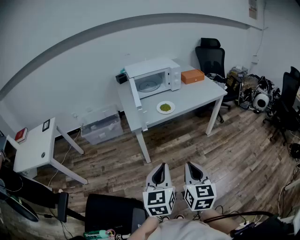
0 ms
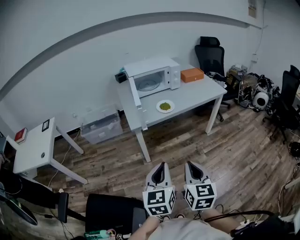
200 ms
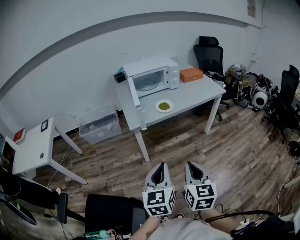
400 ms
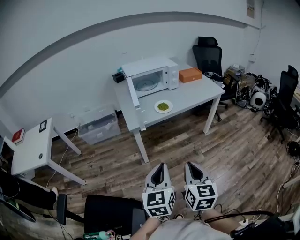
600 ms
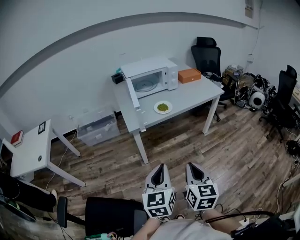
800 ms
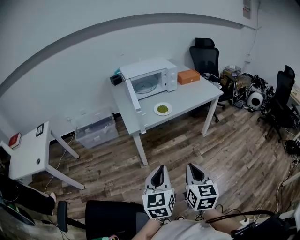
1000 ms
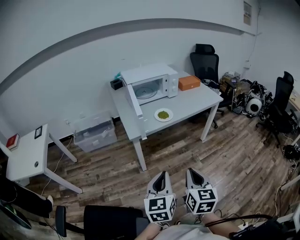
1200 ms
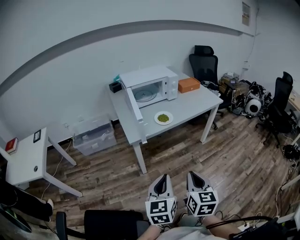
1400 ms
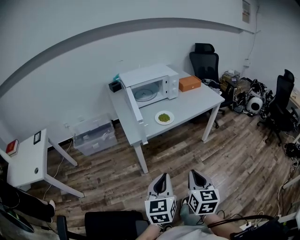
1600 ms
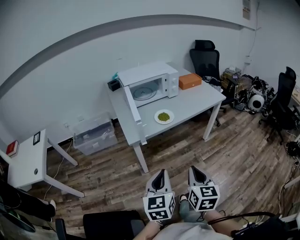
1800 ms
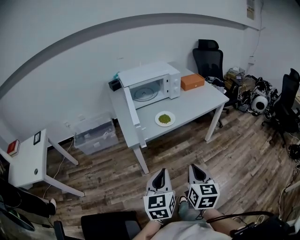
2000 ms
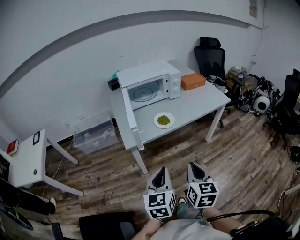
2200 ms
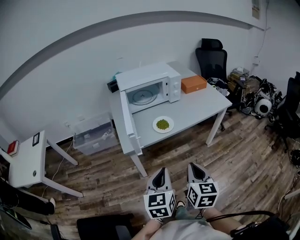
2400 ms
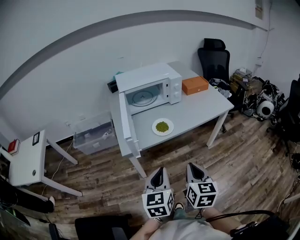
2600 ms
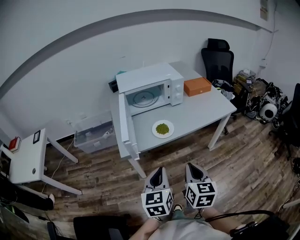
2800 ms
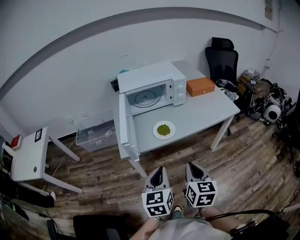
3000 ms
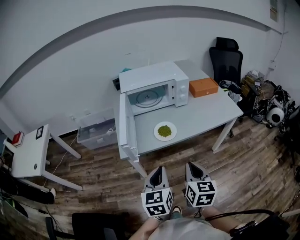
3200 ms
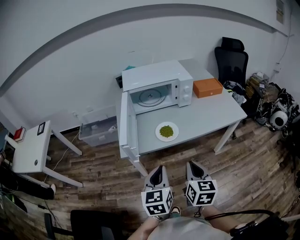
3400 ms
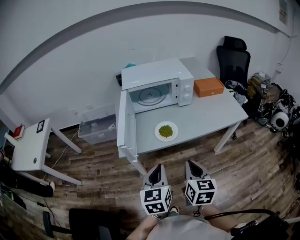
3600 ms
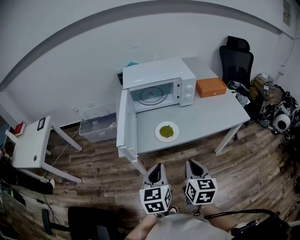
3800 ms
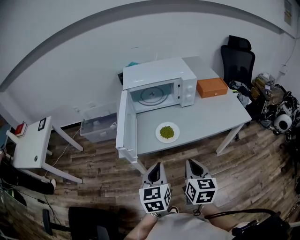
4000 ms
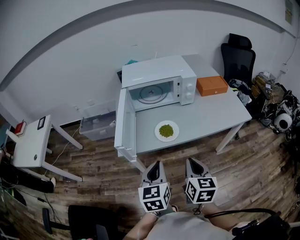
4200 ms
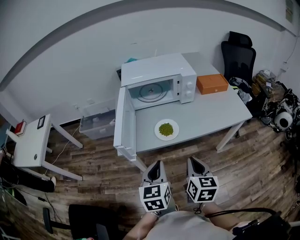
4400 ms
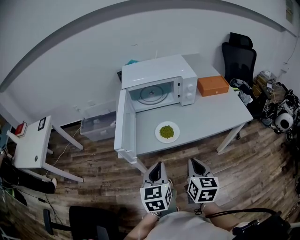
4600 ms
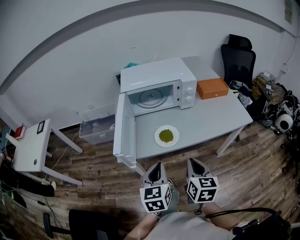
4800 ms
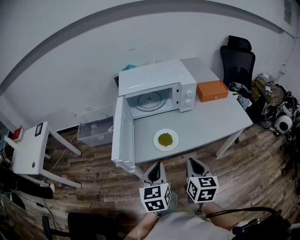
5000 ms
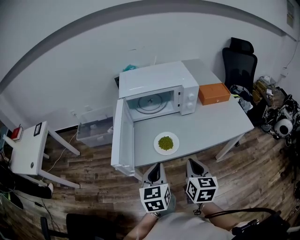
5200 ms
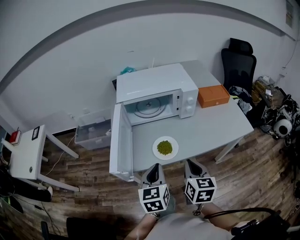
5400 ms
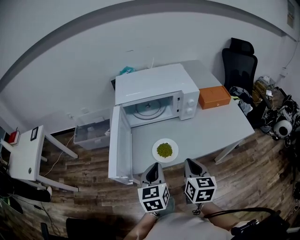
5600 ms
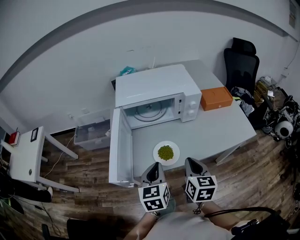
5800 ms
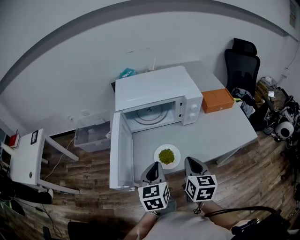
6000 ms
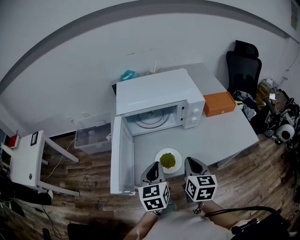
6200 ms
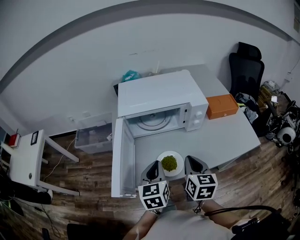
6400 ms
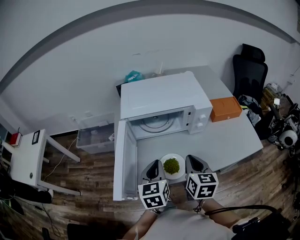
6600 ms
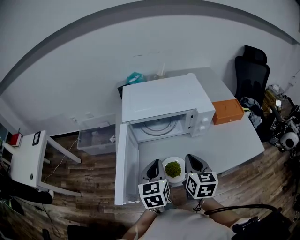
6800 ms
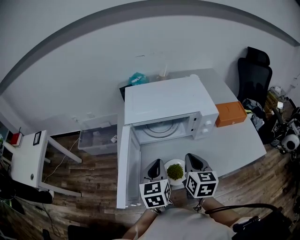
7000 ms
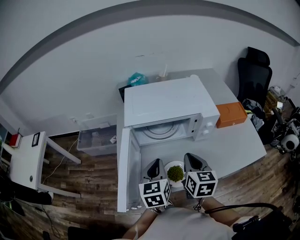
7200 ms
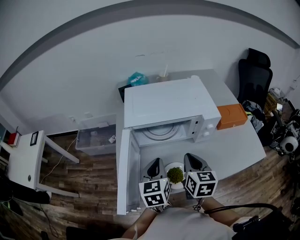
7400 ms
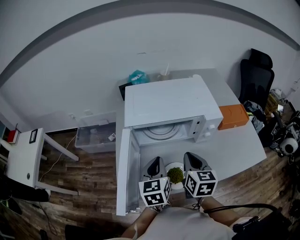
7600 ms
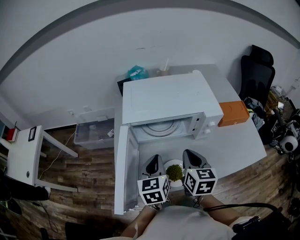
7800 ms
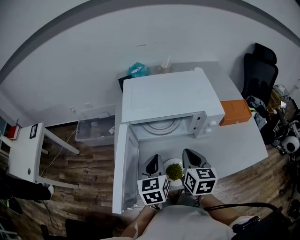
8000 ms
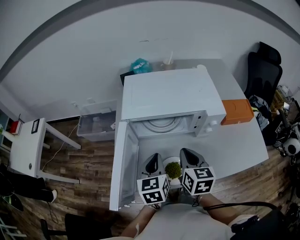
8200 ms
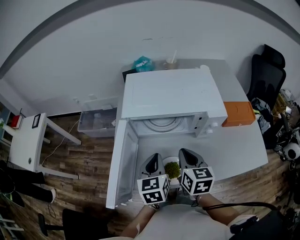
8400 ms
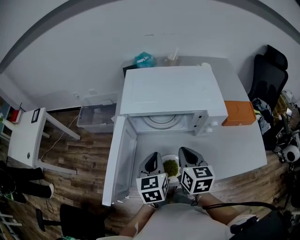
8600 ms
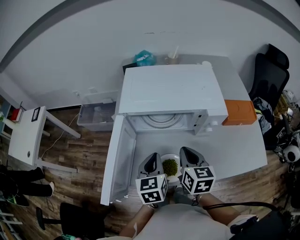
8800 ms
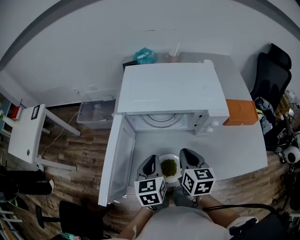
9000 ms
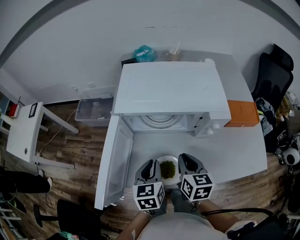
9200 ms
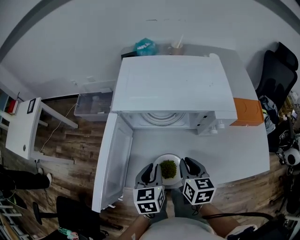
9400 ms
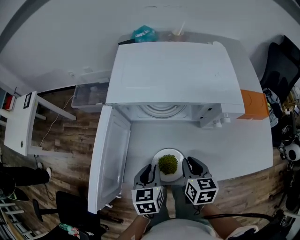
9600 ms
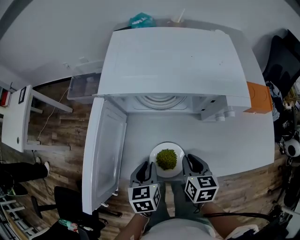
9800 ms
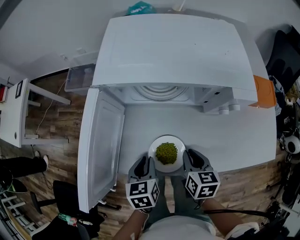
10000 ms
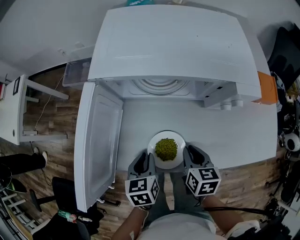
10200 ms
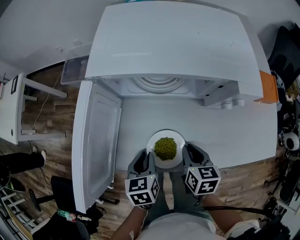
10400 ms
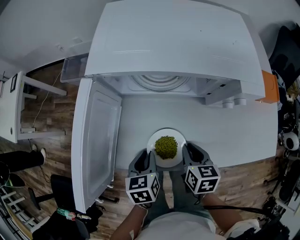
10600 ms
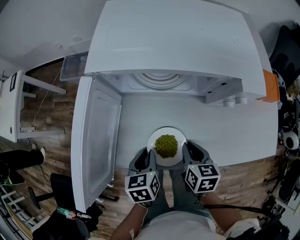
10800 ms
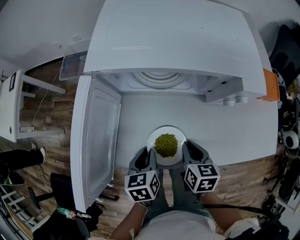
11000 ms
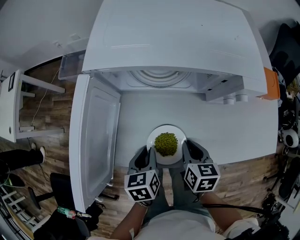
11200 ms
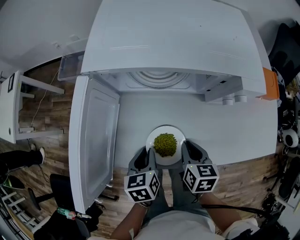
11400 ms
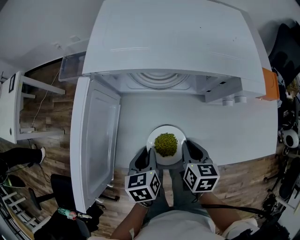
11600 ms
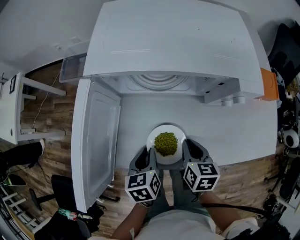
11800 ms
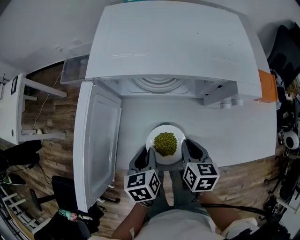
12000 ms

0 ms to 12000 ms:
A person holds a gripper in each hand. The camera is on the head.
0 ms to 1600 ms: Both grippers travel together forward, approximately 5 cm.
1600 ms to 3000 ms: The grippers both shift forward by some 20 cm.
3000 ms to 4400 ms: Both grippers travel together forward, about 10 cm.
4400 ms to 6000 ms: The two grippers go approximately 15 cm forward.
6000 ms to 7600 ms: The grippers both shift forward by roughly 15 cm.
7600 ms to 9000 ms: The grippers move only a little.
9000 ms to 10400 ms: Both grippers move downward, some 15 cm. The left gripper turns by approximately 20 degrees.
10400 ms to 12000 ms: The grippers stay close to where they were, moving slightly.

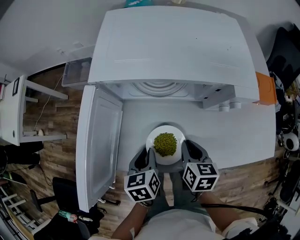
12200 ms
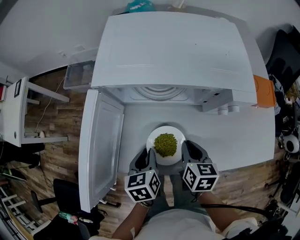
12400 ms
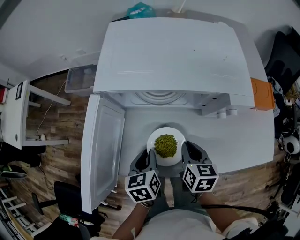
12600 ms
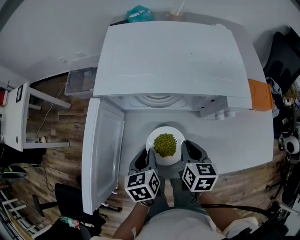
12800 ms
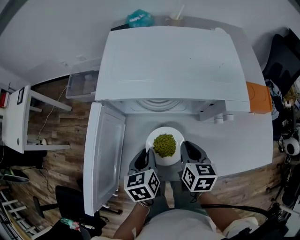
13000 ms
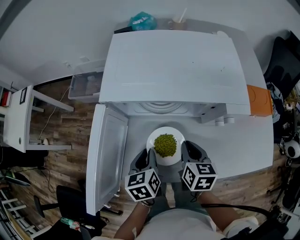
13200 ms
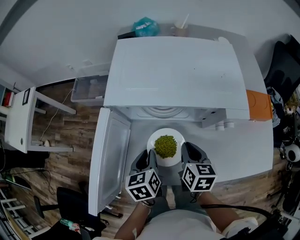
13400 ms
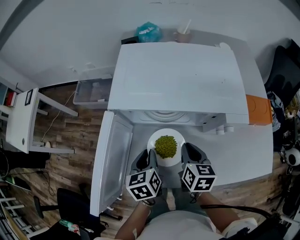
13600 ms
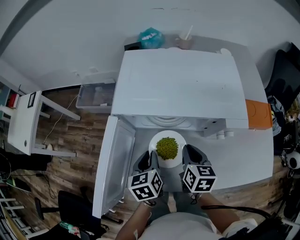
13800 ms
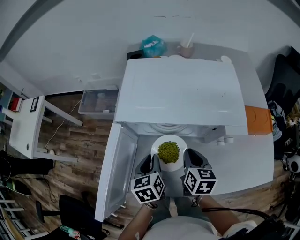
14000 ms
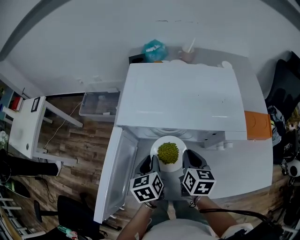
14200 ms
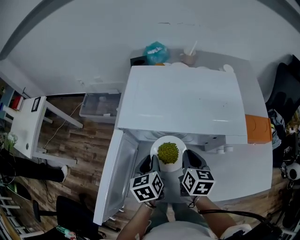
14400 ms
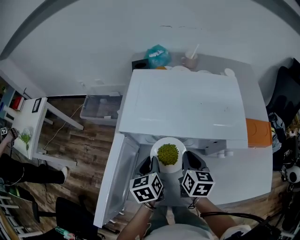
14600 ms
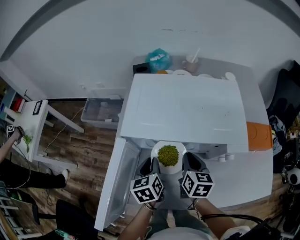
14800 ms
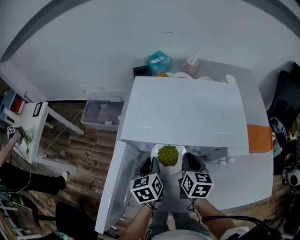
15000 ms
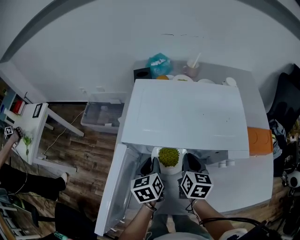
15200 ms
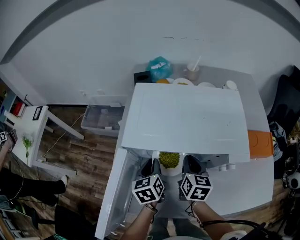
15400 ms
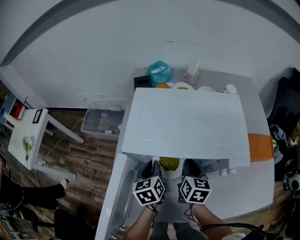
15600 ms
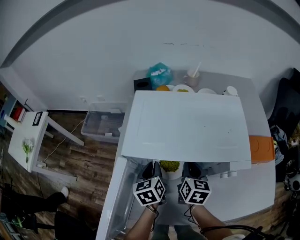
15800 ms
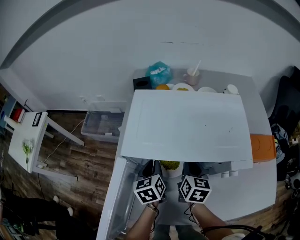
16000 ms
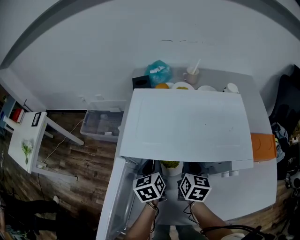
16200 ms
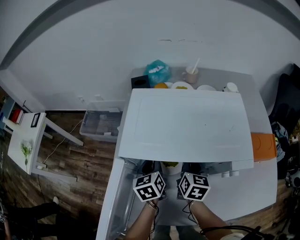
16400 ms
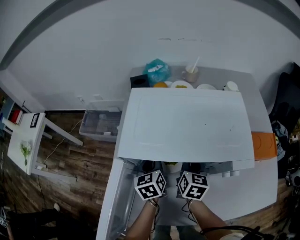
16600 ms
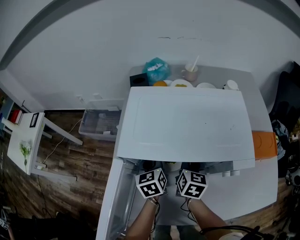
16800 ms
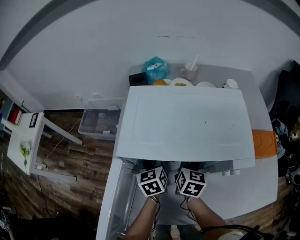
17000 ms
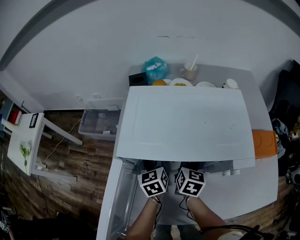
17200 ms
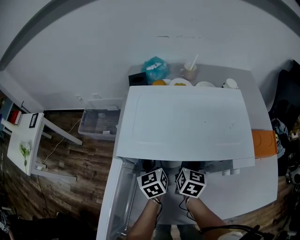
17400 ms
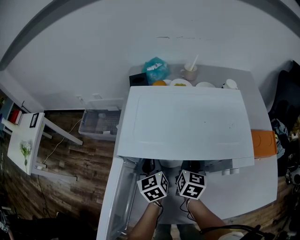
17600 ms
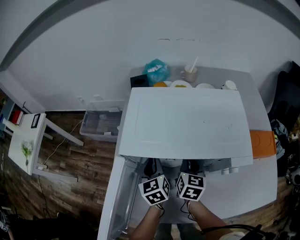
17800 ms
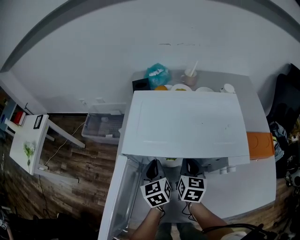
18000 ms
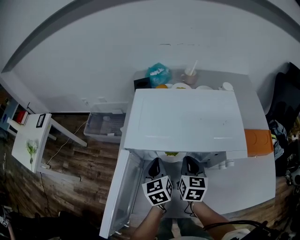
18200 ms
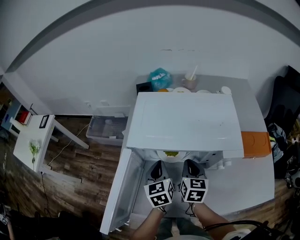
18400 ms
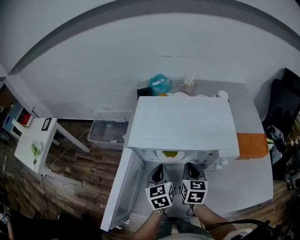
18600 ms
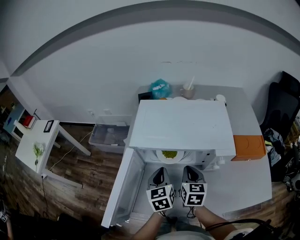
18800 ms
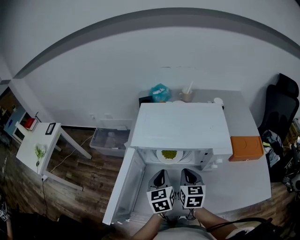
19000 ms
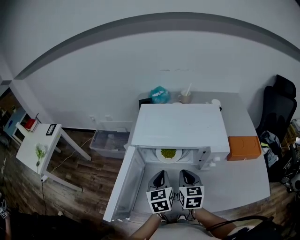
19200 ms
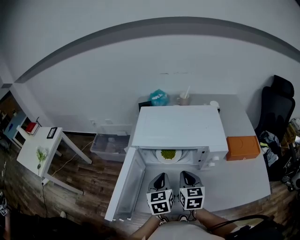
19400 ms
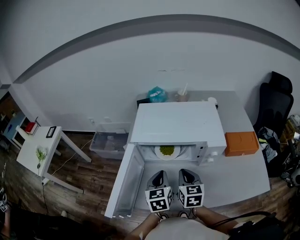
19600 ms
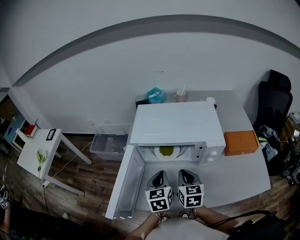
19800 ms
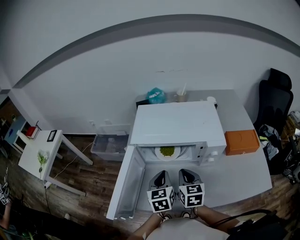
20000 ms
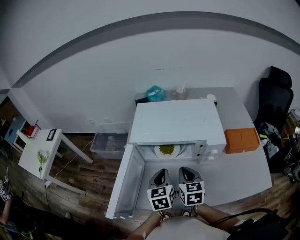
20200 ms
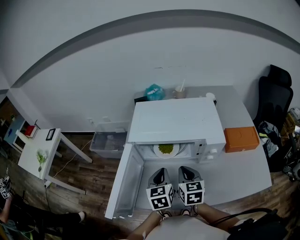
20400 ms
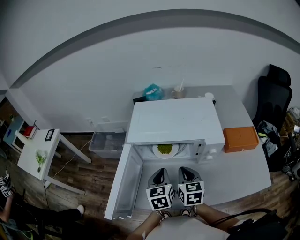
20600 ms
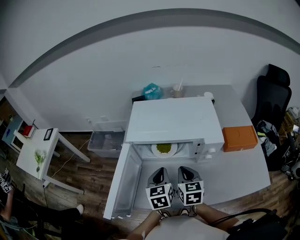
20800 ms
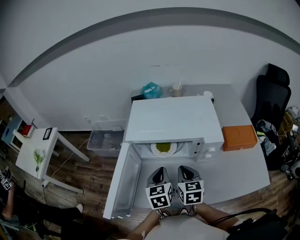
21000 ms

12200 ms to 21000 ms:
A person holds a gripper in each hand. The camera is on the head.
12200 ms to 13600 ms: Both grippers travel together forward and upward, approximately 10 cm.
13600 ms to 15200 ms: Both grippers travel together forward, approximately 10 cm.
15200 ms to 16600 ms: The right gripper ends up some 5 cm from where it was. The left gripper goes about 5 cm forward.
16600 ms to 18000 ms: The grippers stay close to where they were, moving slightly.
18000 ms to 19600 ms: The two grippers go approximately 15 cm backward and upward.
19600 ms to 21000 ms: The grippers move only a little.

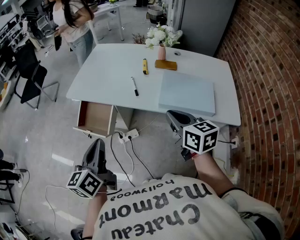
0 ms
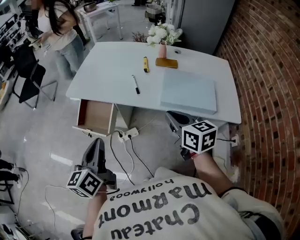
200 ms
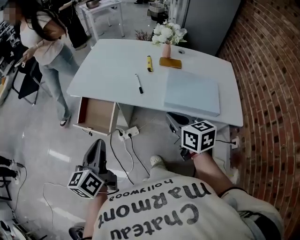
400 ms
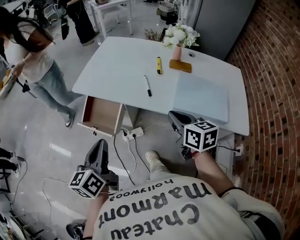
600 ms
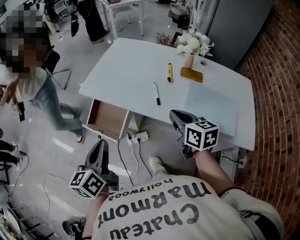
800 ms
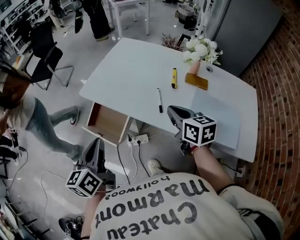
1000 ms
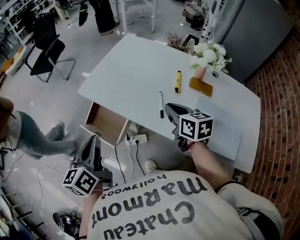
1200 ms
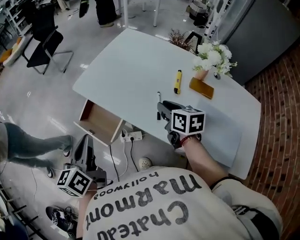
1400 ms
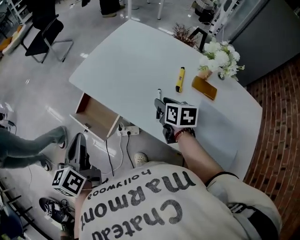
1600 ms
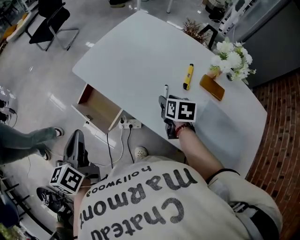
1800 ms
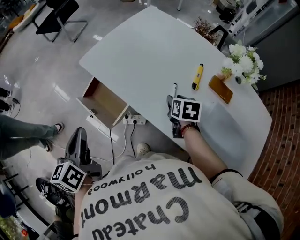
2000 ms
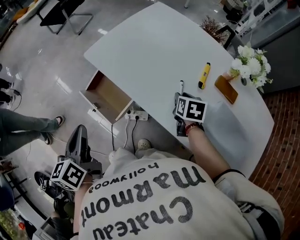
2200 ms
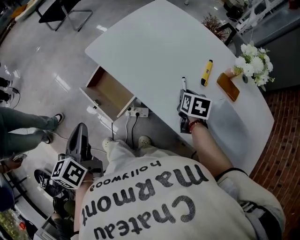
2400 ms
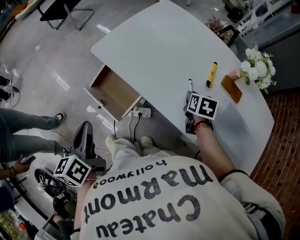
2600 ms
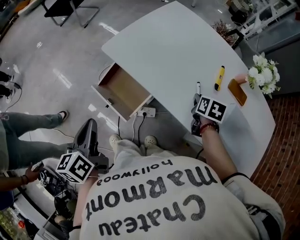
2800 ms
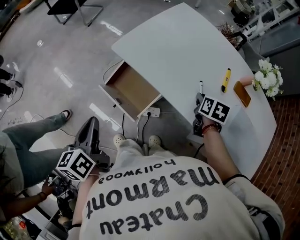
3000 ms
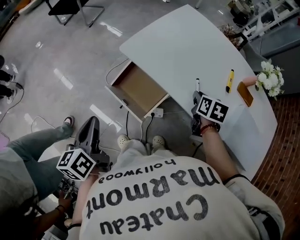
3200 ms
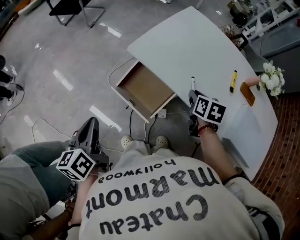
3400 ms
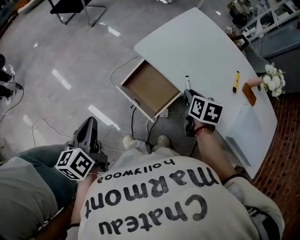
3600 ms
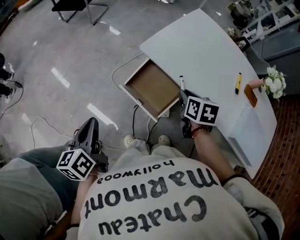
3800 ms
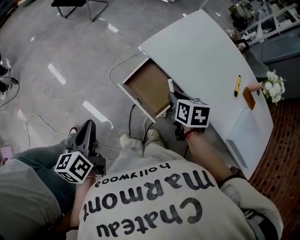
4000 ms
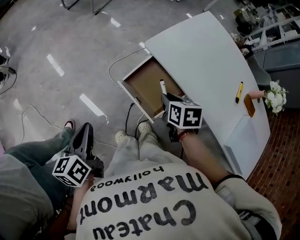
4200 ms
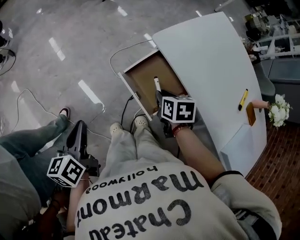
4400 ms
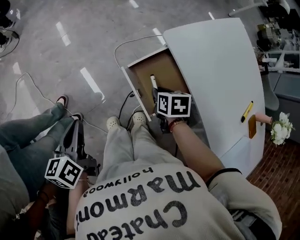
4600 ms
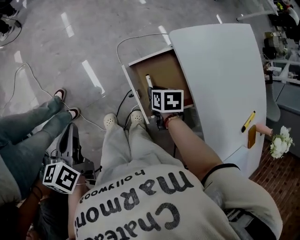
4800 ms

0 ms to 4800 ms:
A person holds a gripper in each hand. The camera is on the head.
0 ms to 1600 ms: The right gripper travels forward and downward by approximately 35 cm, turns by roughly 20 degrees, and opens its fingers; the left gripper is displaced forward by some 20 cm, and rotates roughly 30 degrees.
1600 ms to 3200 ms: The left gripper travels to the left by some 20 cm; the right gripper travels to the left by roughly 10 cm.
3200 ms to 4800 ms: The left gripper shifts by some 15 cm, and changes its angle by approximately 30 degrees; the right gripper changes place by roughly 35 cm, and rotates approximately 50 degrees.
